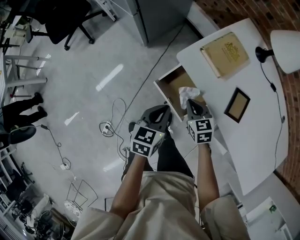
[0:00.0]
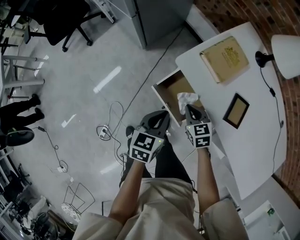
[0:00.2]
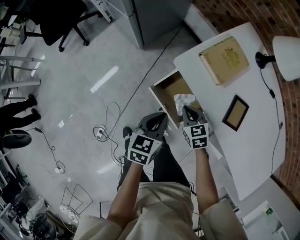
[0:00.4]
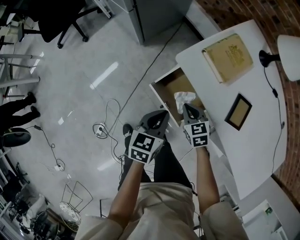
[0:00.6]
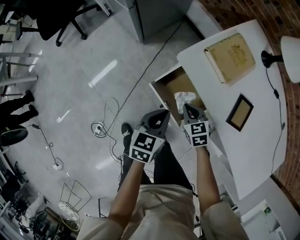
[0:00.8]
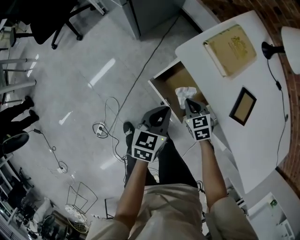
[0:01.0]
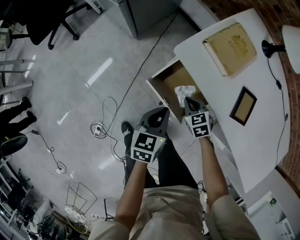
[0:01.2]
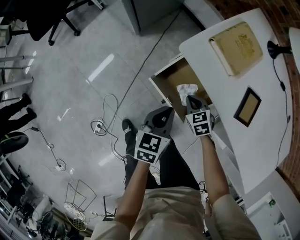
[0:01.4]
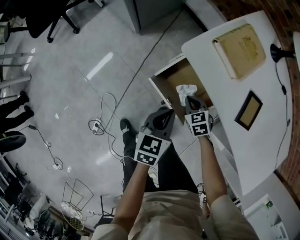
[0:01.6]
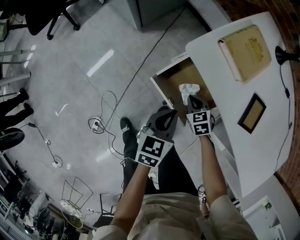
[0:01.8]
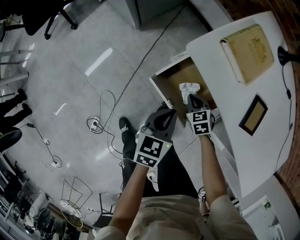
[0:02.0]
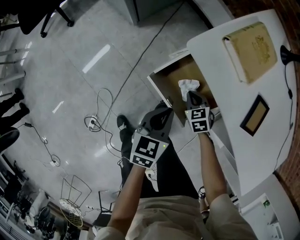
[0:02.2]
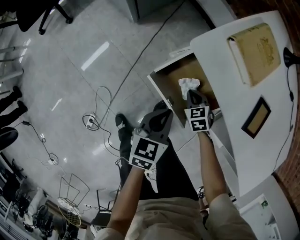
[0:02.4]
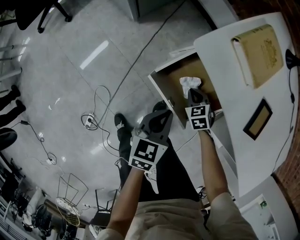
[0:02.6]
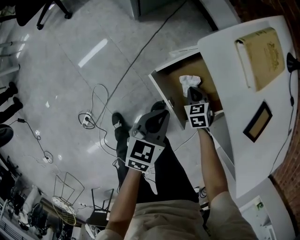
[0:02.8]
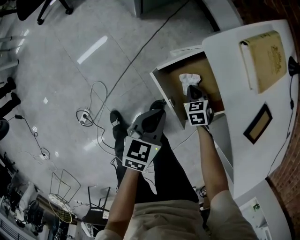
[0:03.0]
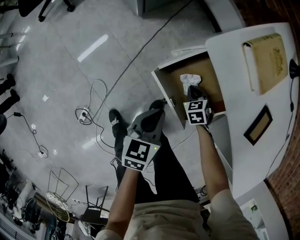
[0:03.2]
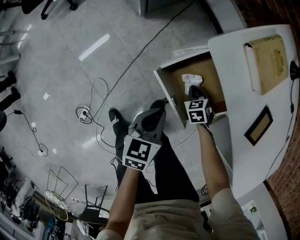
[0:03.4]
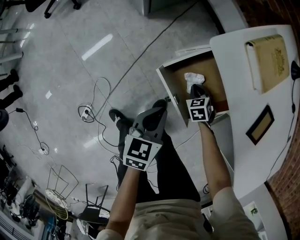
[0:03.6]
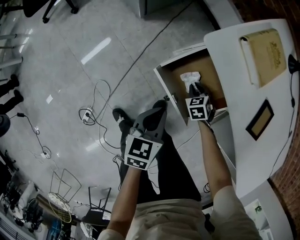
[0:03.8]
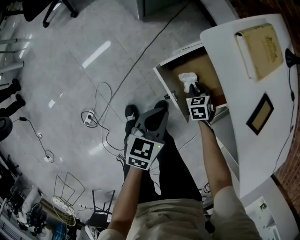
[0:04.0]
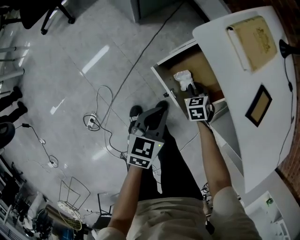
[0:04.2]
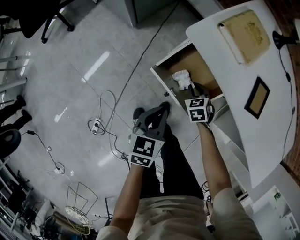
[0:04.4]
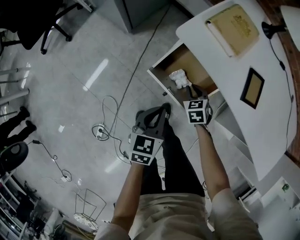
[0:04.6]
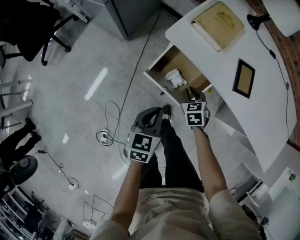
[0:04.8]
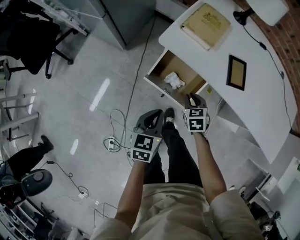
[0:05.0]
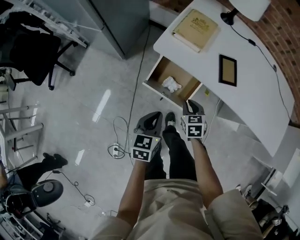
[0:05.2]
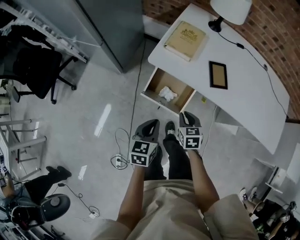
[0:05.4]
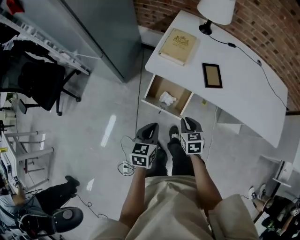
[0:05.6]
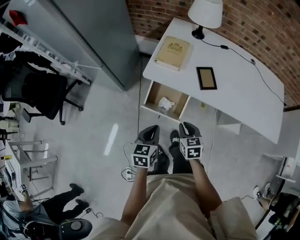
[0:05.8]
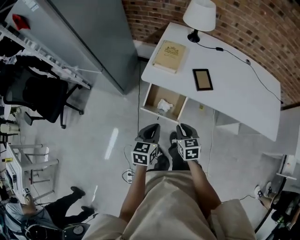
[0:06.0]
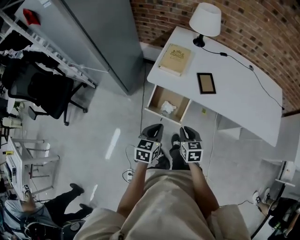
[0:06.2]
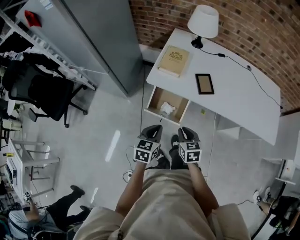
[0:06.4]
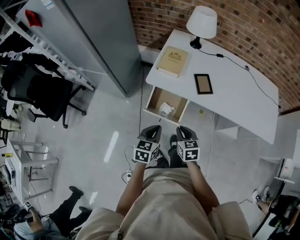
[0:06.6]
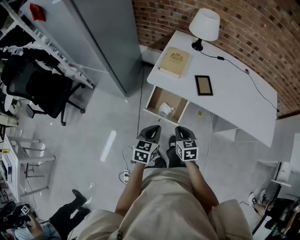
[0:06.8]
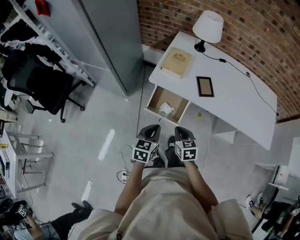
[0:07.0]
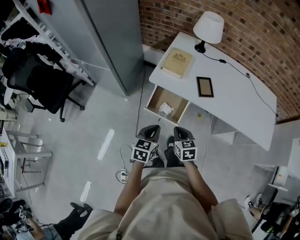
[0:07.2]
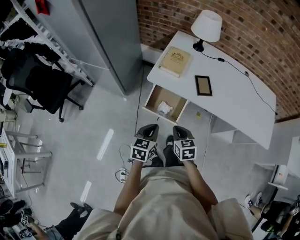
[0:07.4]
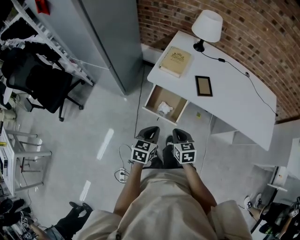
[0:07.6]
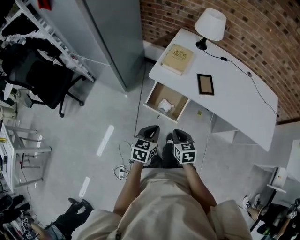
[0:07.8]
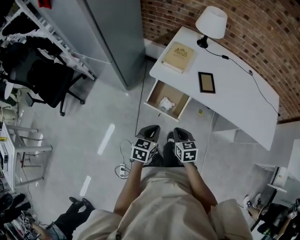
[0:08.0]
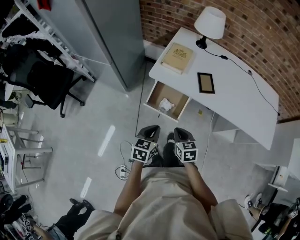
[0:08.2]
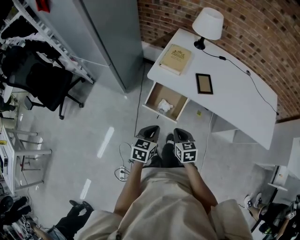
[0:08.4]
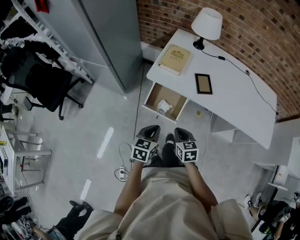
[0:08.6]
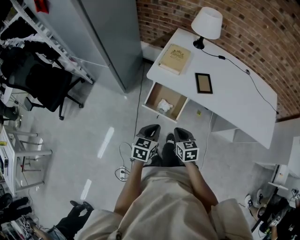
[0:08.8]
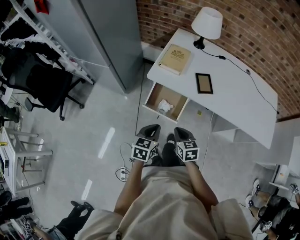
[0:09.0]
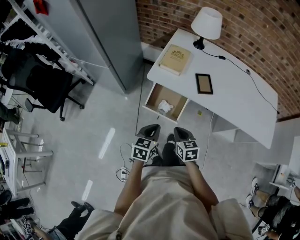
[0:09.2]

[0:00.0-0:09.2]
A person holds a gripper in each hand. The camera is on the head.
0:00.0 to 0:01.6: The left gripper shifts about 10 cm downward, while the right gripper travels downward by roughly 15 cm.
0:01.6 to 0:03.0: Both grippers travel together downward, roughly 10 cm.
0:03.0 to 0:04.6: Both grippers move upward, approximately 10 cm.
0:04.6 to 0:06.2: The right gripper shifts approximately 35 cm upward and backward, and rotates approximately 40 degrees; the left gripper goes some 20 cm upward.
0:06.2 to 0:09.2: The grippers stay close to where they were, moving slightly.

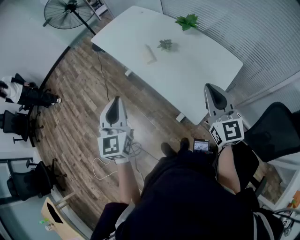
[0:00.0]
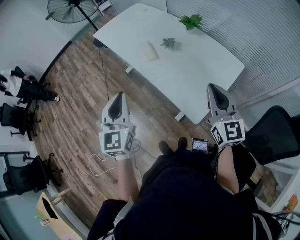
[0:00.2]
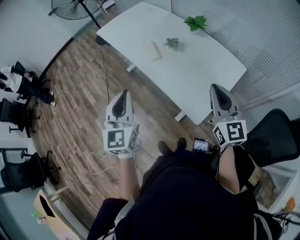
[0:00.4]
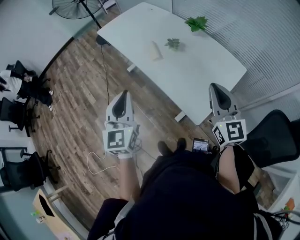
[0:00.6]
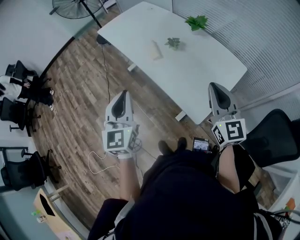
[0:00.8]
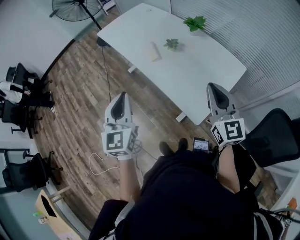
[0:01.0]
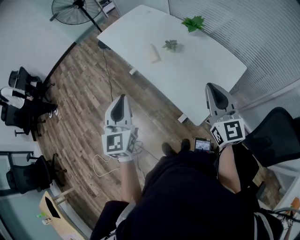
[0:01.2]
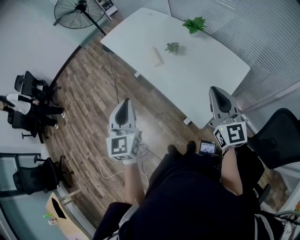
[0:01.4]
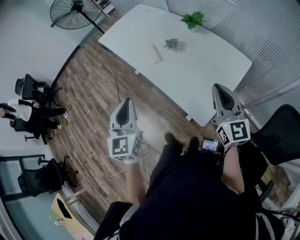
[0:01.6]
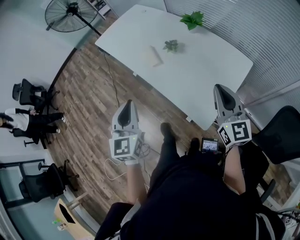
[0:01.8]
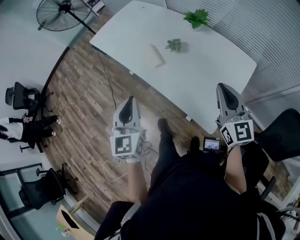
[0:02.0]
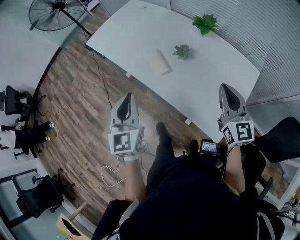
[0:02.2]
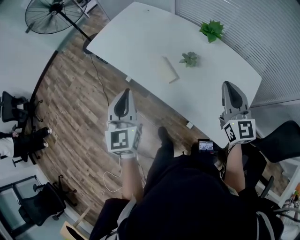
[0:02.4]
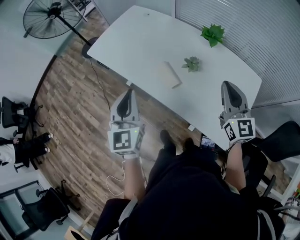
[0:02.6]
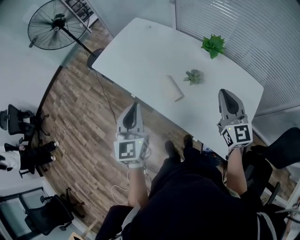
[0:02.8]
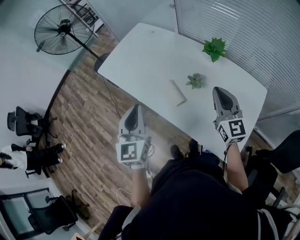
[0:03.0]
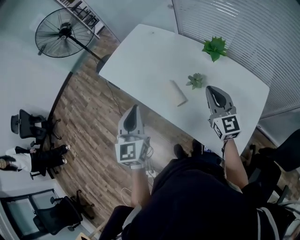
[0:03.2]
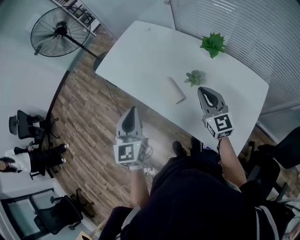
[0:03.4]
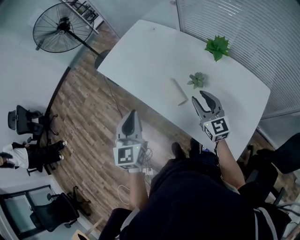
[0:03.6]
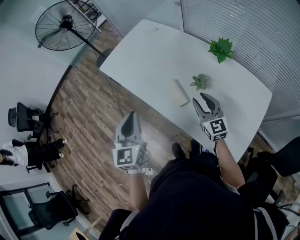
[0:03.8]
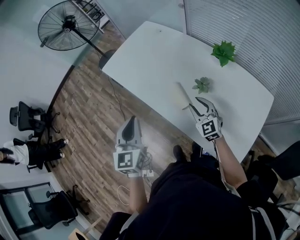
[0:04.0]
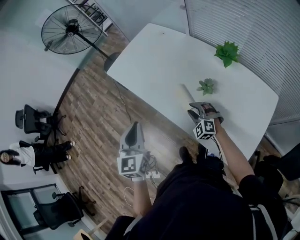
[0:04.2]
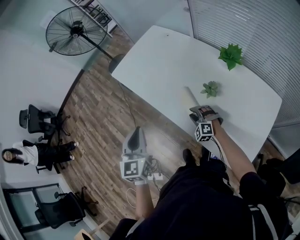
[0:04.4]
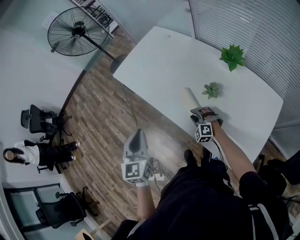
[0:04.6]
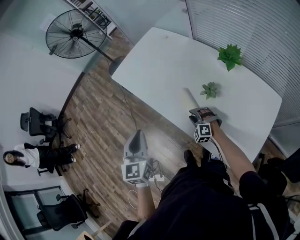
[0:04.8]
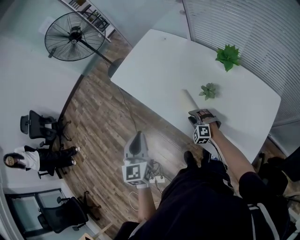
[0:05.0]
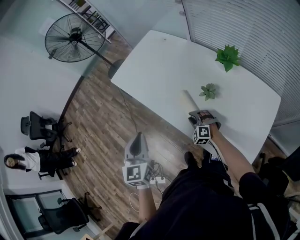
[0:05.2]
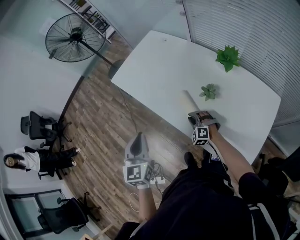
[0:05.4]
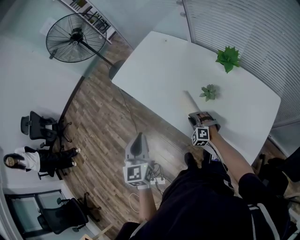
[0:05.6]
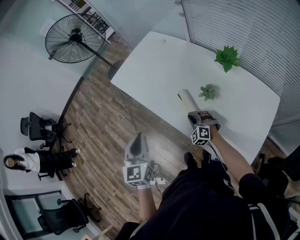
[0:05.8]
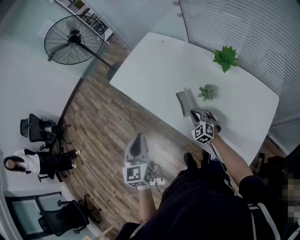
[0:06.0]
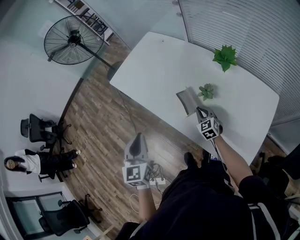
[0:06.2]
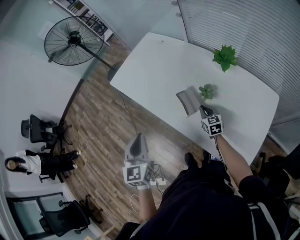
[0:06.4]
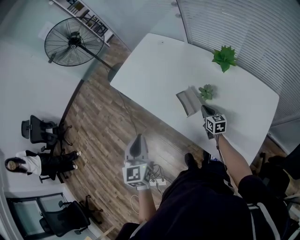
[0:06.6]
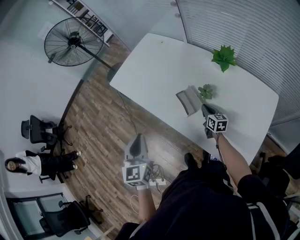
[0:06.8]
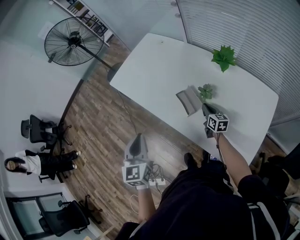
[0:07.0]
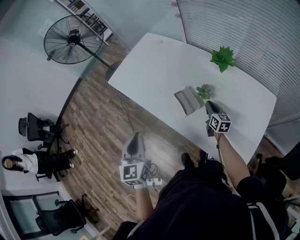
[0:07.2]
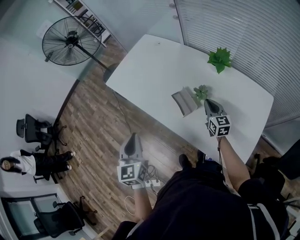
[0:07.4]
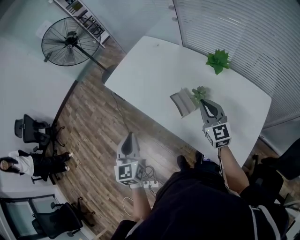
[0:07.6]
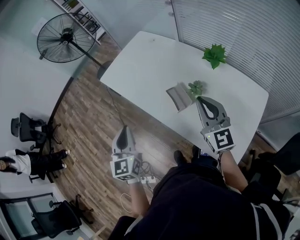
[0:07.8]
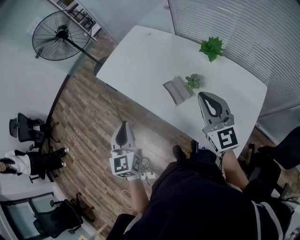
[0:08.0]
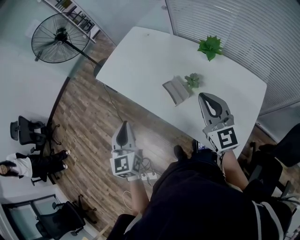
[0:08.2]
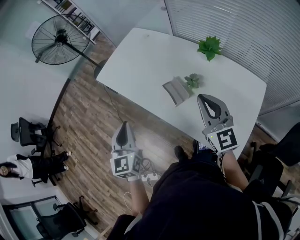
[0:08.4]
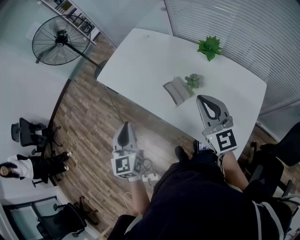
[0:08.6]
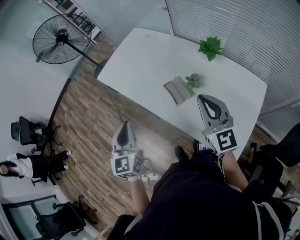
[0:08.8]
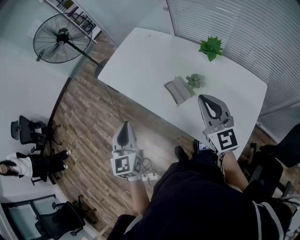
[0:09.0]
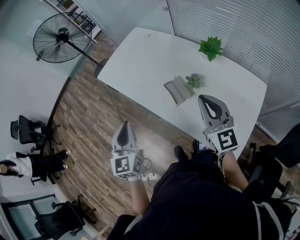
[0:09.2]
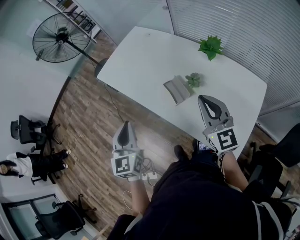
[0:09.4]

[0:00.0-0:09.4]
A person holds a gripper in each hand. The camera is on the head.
0:00.0 to 0:01.6: The grippers make only small movements.
0:01.6 to 0:03.2: The two grippers go roughly 30 cm forward and to the left.
0:03.2 to 0:04.8: The left gripper shifts approximately 5 cm to the left. Meanwhile the right gripper is displaced downward and to the left by roughly 30 cm, rolls counterclockwise, seen from behind, by approximately 60 degrees, and opens.
0:04.8 to 0:06.2: The right gripper moves to the right, some 10 cm, rotates around the line of its fingers by roughly 50 degrees, clockwise from behind, and closes its fingers.
0:06.2 to 0:07.8: The right gripper heads upward, covering roughly 25 cm, and tips its fingers upward by about 30 degrees.
0:07.8 to 0:09.4: The grippers make only small movements.

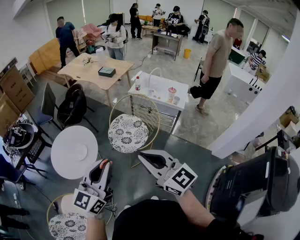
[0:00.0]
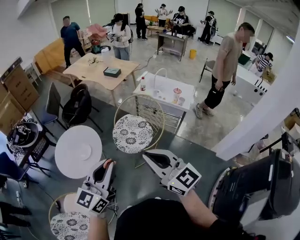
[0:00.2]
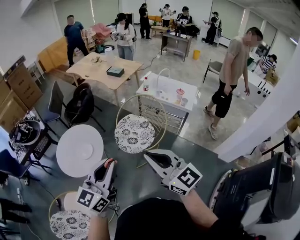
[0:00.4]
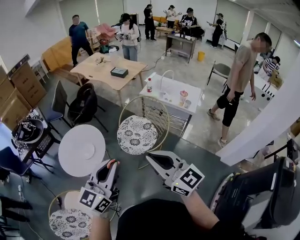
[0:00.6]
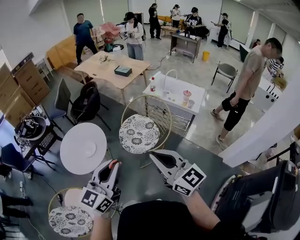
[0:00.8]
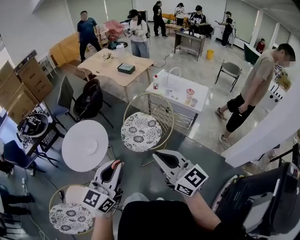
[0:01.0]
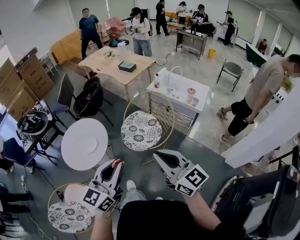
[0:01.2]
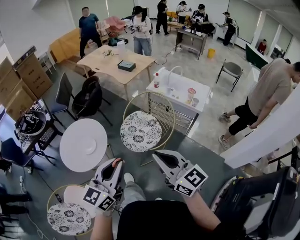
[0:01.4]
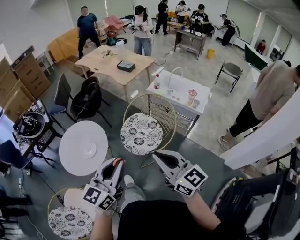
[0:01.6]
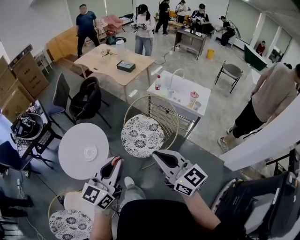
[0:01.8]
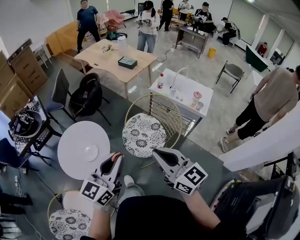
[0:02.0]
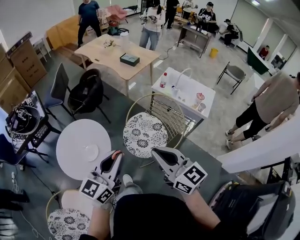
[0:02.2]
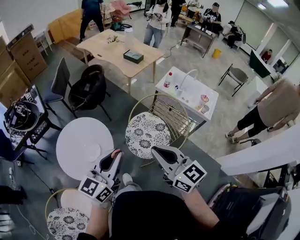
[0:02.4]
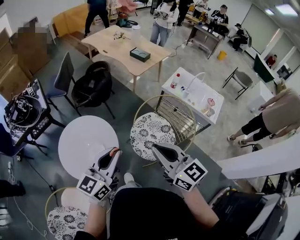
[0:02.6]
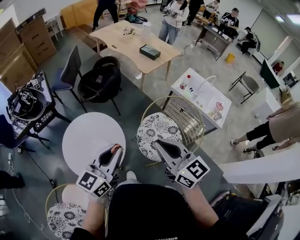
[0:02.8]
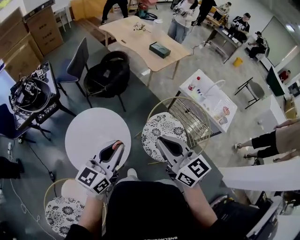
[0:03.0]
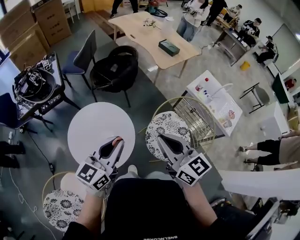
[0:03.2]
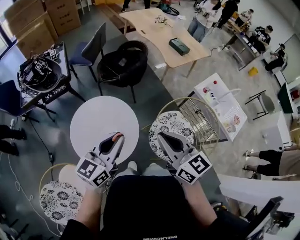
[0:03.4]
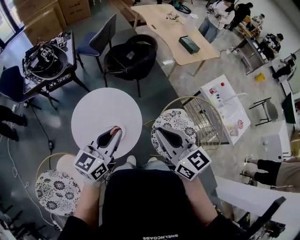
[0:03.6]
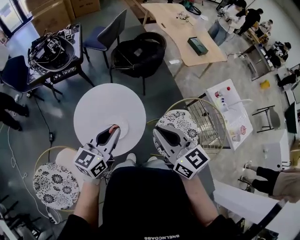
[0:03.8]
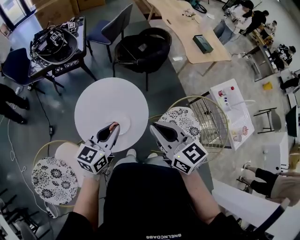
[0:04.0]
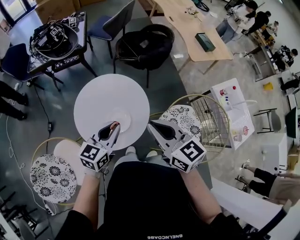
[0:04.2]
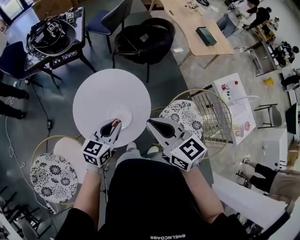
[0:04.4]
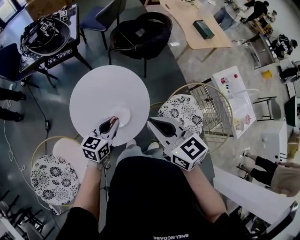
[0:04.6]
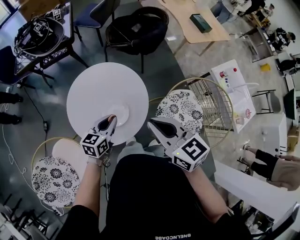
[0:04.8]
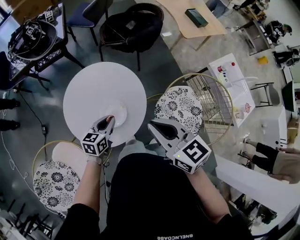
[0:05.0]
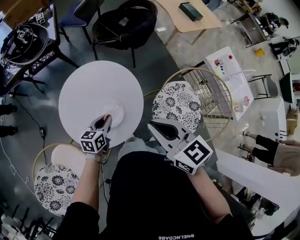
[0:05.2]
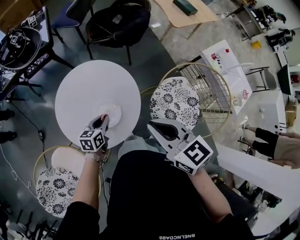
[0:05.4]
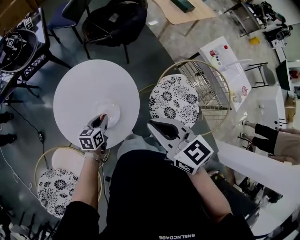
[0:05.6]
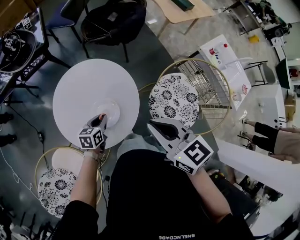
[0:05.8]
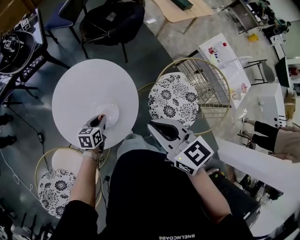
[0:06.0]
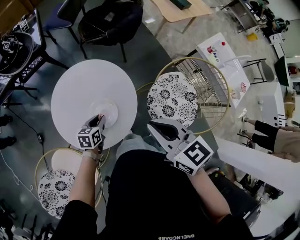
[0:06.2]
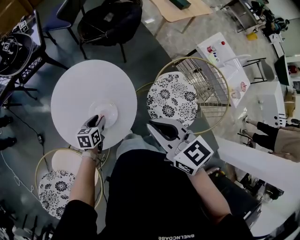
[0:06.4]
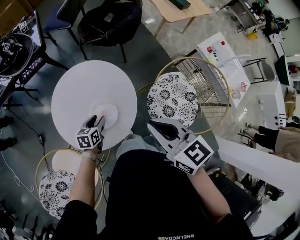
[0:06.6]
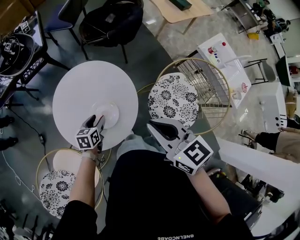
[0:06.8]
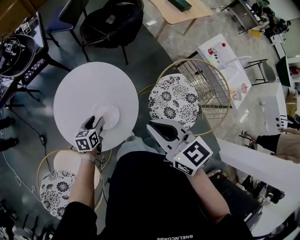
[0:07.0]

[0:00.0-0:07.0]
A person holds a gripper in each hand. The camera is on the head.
0:00.0 to 0:01.4: Both grippers move to the right, roughly 5 cm.
0:01.4 to 0:02.8: Both grippers move forward and to the left, some 30 cm.
0:02.8 to 0:04.2: The left gripper moves downward and to the left, roughly 20 cm, and changes its angle by about 30 degrees, while the right gripper travels to the left, forward and downward by approximately 20 cm, and turns by about 30 degrees.
0:04.2 to 0:05.6: The right gripper is displaced downward by about 5 cm, while the left gripper shifts roughly 25 cm downward, and changes its angle by approximately 30 degrees.
0:05.6 to 0:07.0: The left gripper opens its fingers.
